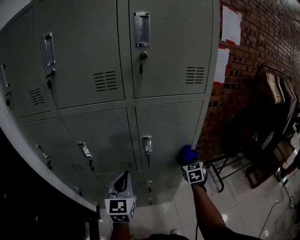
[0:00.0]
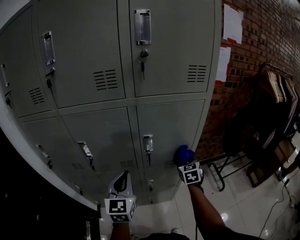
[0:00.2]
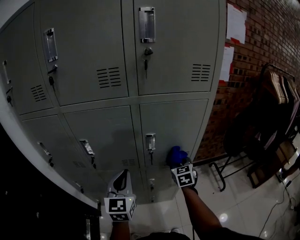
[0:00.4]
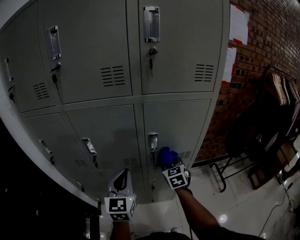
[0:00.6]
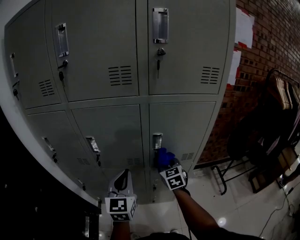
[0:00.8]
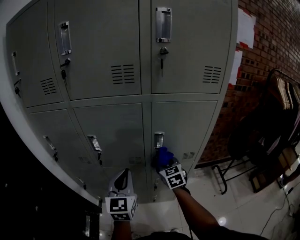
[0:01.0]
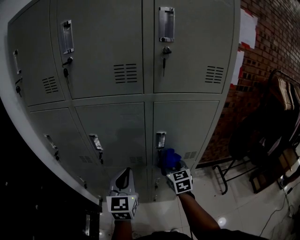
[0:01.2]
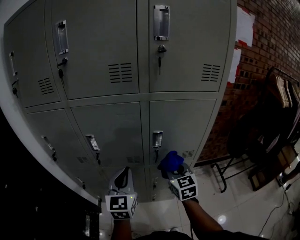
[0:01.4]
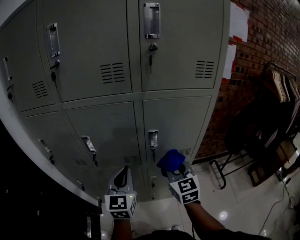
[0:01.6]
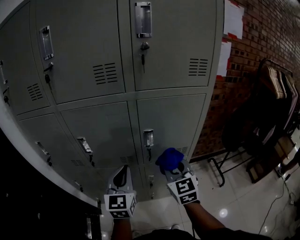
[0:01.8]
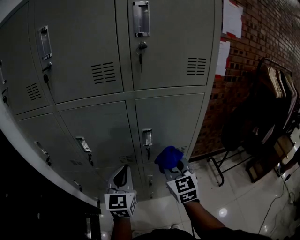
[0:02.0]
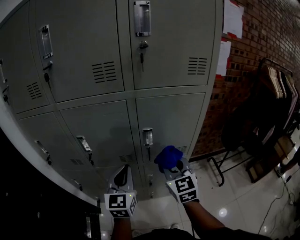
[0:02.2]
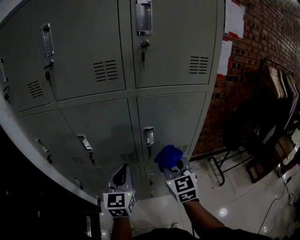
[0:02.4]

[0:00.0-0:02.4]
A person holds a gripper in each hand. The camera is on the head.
0:00.0 to 0:01.2: The right gripper moves to the left, approximately 15 cm.
0:01.2 to 0:02.4: The right gripper heads upward and backward, covering some 10 cm.

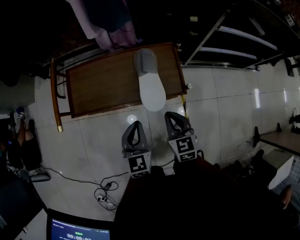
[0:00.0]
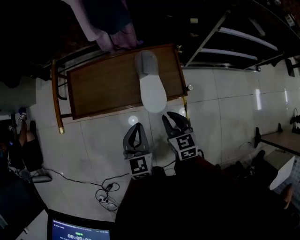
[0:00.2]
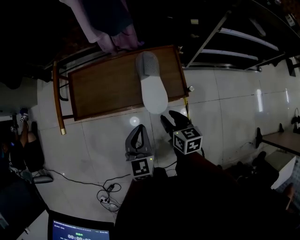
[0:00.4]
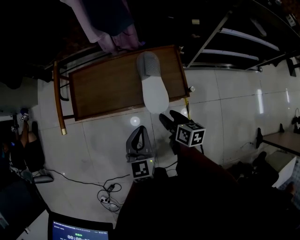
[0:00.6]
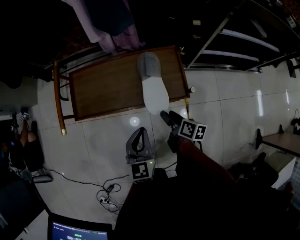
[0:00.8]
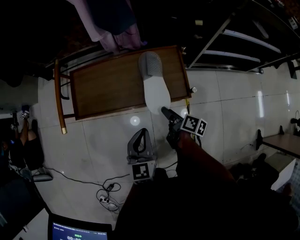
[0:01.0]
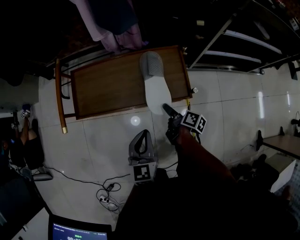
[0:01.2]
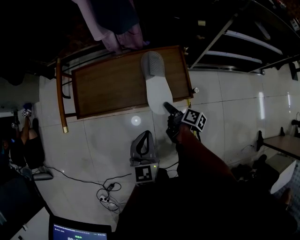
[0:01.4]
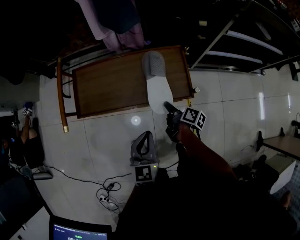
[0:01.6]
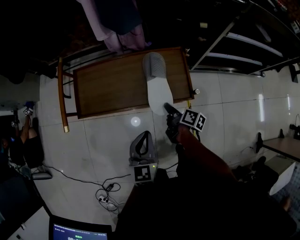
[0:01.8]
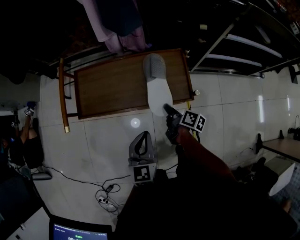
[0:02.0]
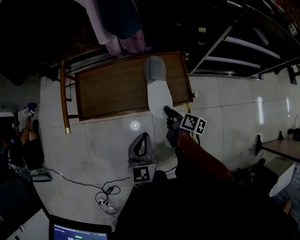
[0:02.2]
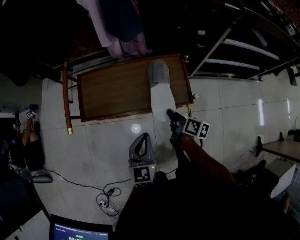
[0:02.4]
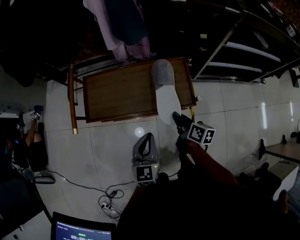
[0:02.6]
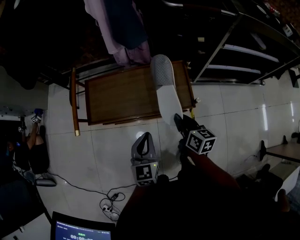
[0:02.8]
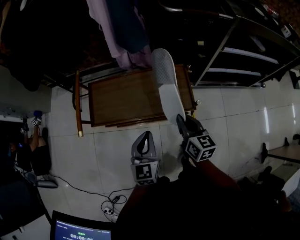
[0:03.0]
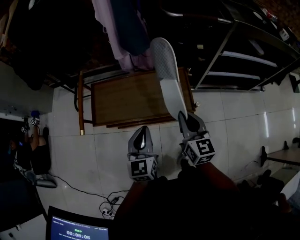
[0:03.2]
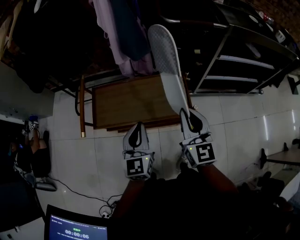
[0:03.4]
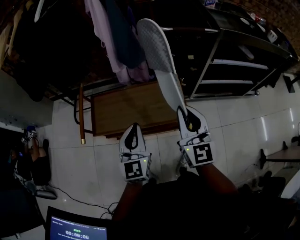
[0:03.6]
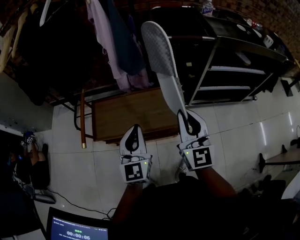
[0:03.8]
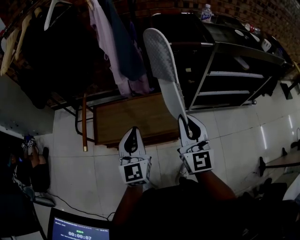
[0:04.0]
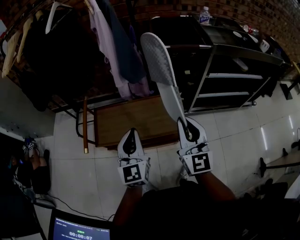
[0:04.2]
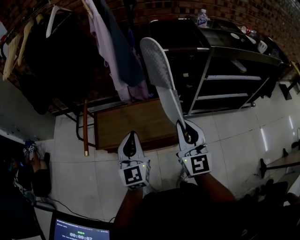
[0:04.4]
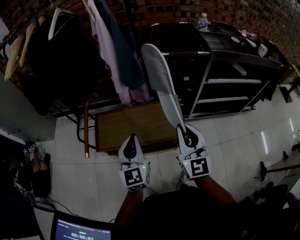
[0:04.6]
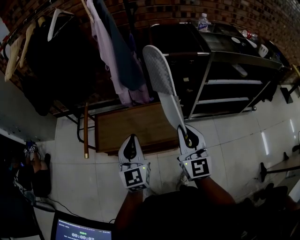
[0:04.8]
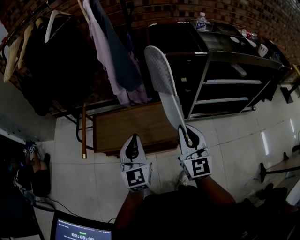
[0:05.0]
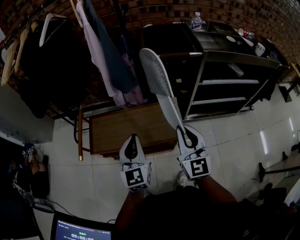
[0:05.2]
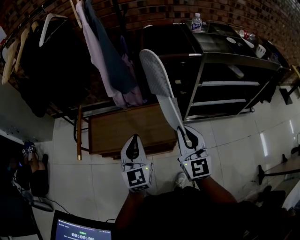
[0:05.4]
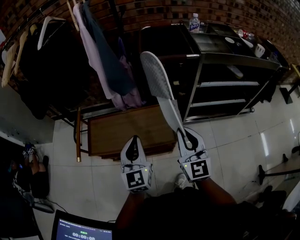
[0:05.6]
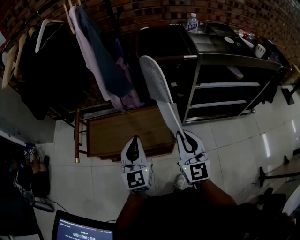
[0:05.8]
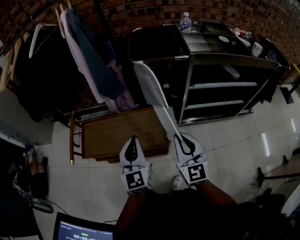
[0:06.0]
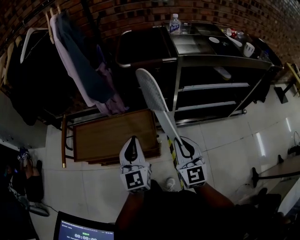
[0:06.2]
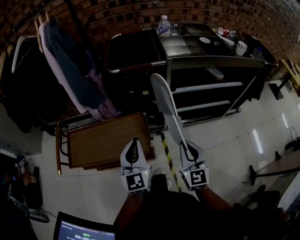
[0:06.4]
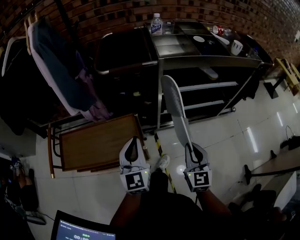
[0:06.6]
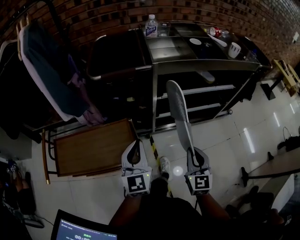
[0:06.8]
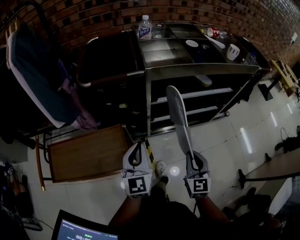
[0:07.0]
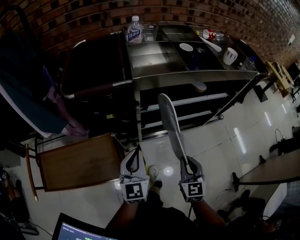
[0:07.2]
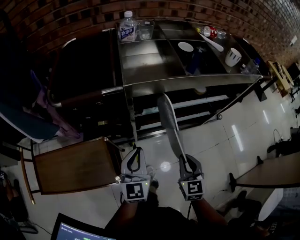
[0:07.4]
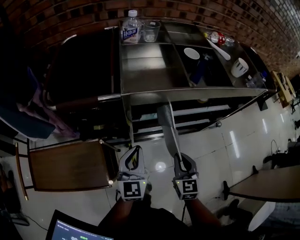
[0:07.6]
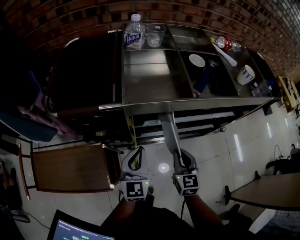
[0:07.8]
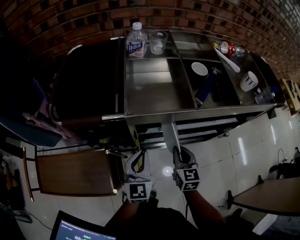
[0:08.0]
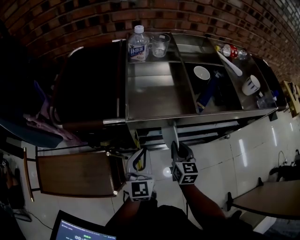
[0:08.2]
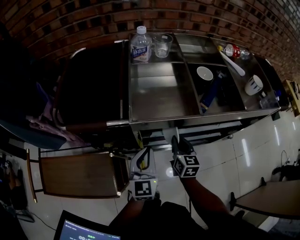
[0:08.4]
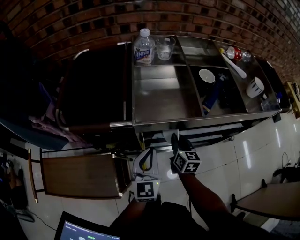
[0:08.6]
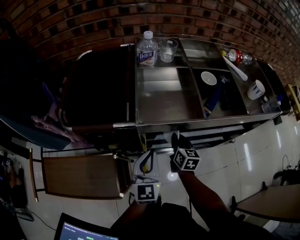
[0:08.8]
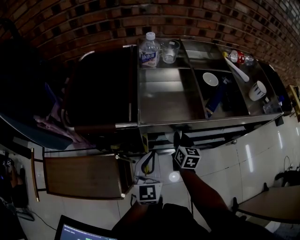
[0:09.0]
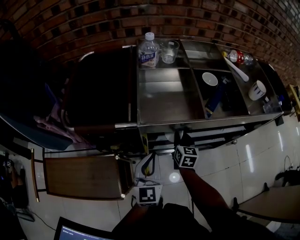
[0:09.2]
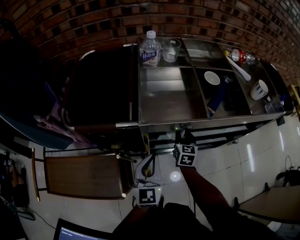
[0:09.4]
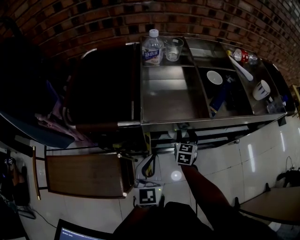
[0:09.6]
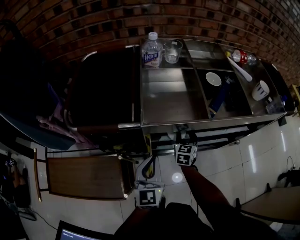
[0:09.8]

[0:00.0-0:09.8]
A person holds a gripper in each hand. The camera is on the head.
0:00.0 to 0:01.4: The right gripper travels downward and forward by some 10 cm, rotates around the line of its fingers by roughly 80 degrees, clockwise from behind, and opens its fingers.
0:01.4 to 0:02.8: The right gripper is displaced upward by about 15 cm, rotates around the line of its fingers by roughly 40 degrees, counterclockwise from behind, and closes its fingers.
0:02.8 to 0:04.2: Both grippers move upward, roughly 25 cm. The right gripper tips its fingers upward by some 30 degrees.
0:04.2 to 0:05.6: Both grippers move to the right, approximately 10 cm.
0:05.6 to 0:07.0: The left gripper shifts some 30 cm to the right and forward. Meanwhile the right gripper moves to the right and downward, roughly 30 cm, and rotates about 30 degrees.
0:07.0 to 0:08.4: The right gripper travels forward by some 30 cm, and changes its angle by roughly 20 degrees. Meanwhile the left gripper travels forward and to the right by roughly 25 cm.
0:08.4 to 0:09.8: The right gripper moves forward, some 5 cm, changes its angle by approximately 20 degrees, and opens its fingers.

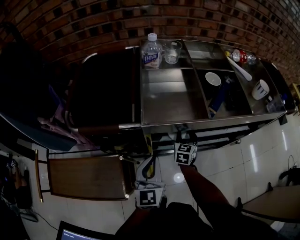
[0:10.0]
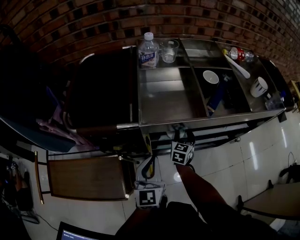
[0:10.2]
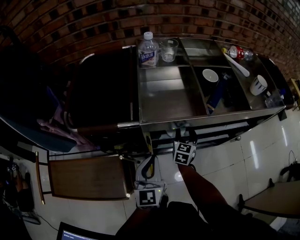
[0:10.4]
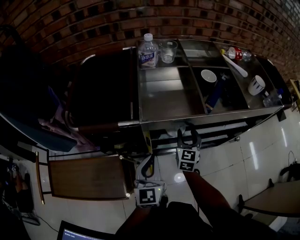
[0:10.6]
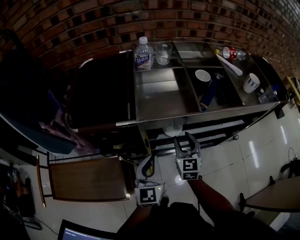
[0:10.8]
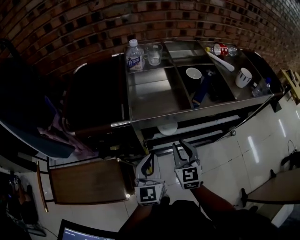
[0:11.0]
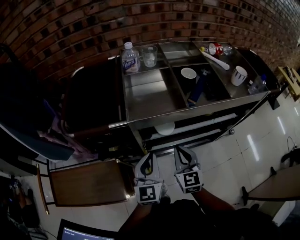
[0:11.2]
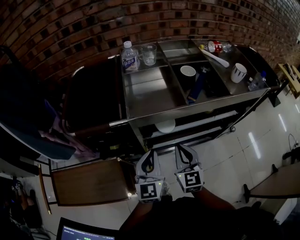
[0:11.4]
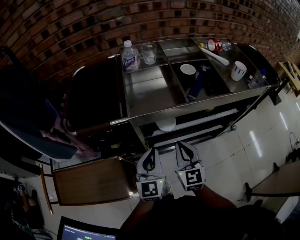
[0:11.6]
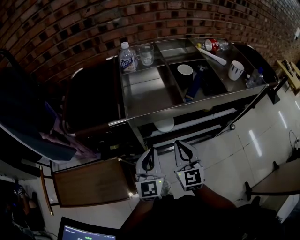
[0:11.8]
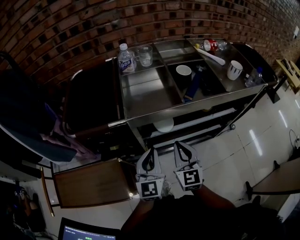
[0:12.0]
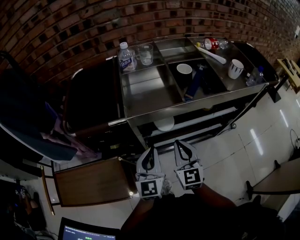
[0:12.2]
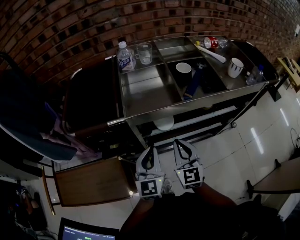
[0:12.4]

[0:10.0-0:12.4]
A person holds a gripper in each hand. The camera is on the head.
0:10.0 to 0:11.2: The right gripper moves backward and upward, some 20 cm, turns by about 20 degrees, and closes.
0:11.2 to 0:12.4: The grippers make only small movements.

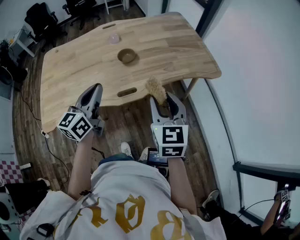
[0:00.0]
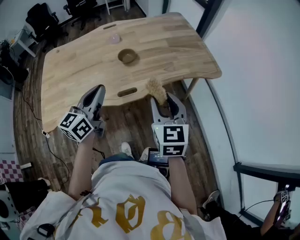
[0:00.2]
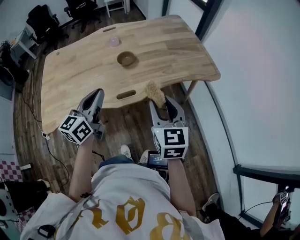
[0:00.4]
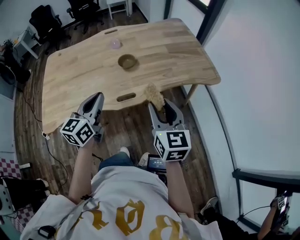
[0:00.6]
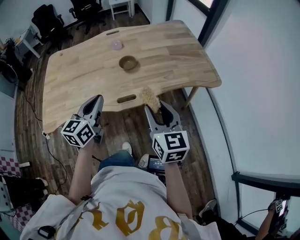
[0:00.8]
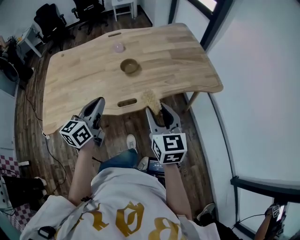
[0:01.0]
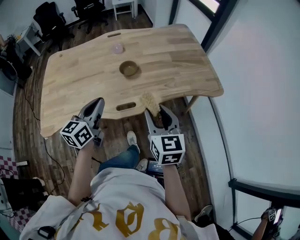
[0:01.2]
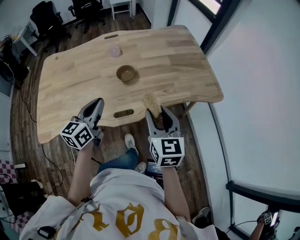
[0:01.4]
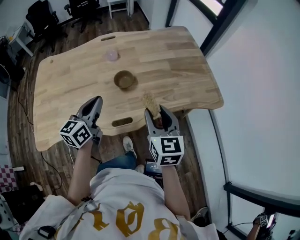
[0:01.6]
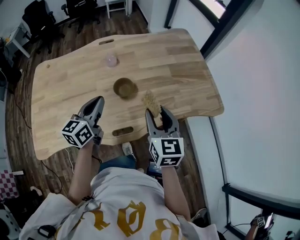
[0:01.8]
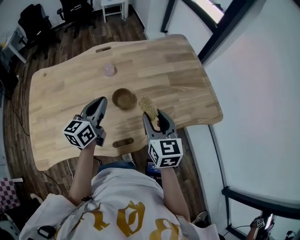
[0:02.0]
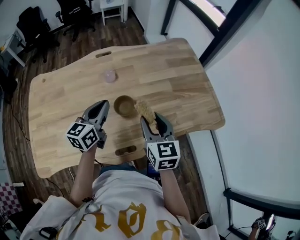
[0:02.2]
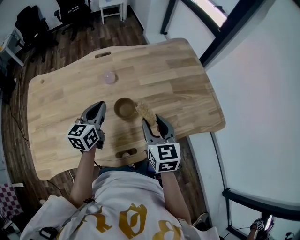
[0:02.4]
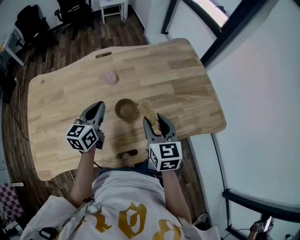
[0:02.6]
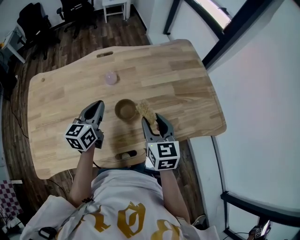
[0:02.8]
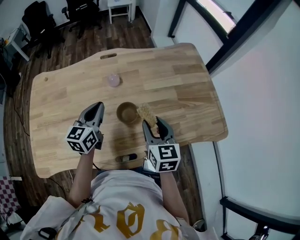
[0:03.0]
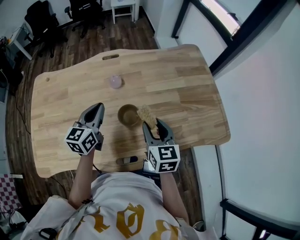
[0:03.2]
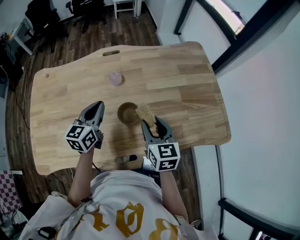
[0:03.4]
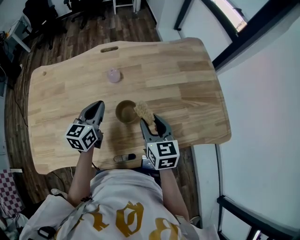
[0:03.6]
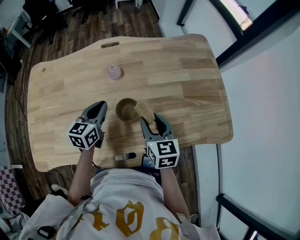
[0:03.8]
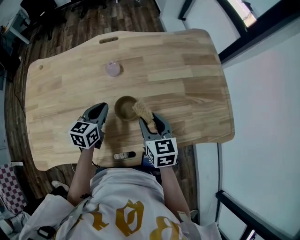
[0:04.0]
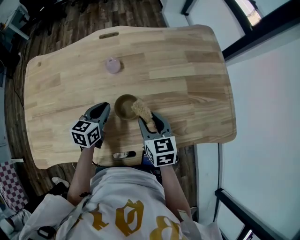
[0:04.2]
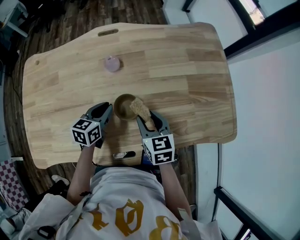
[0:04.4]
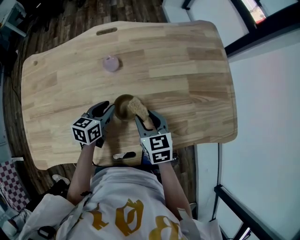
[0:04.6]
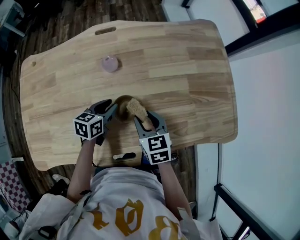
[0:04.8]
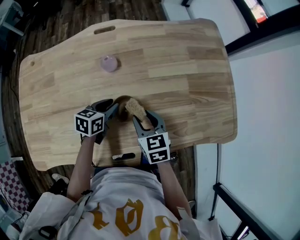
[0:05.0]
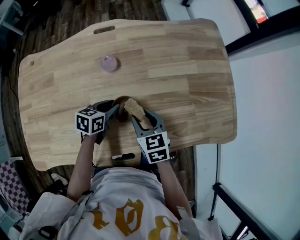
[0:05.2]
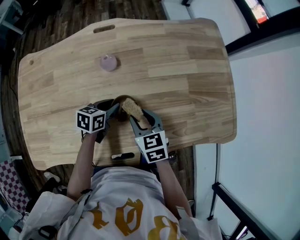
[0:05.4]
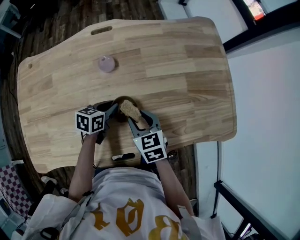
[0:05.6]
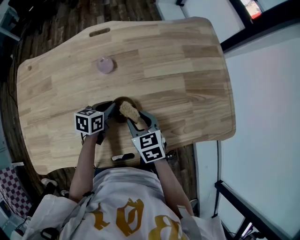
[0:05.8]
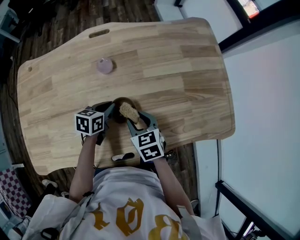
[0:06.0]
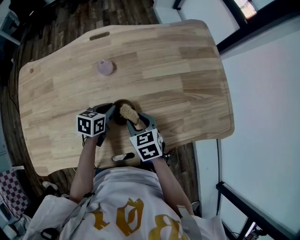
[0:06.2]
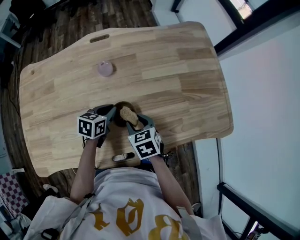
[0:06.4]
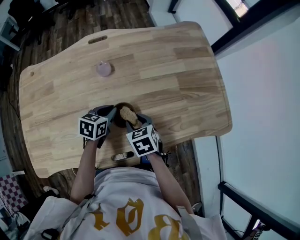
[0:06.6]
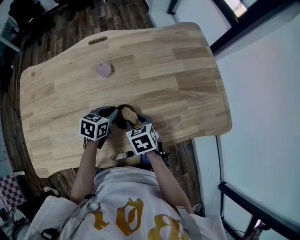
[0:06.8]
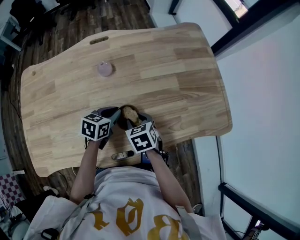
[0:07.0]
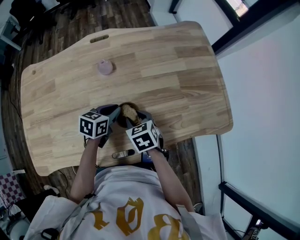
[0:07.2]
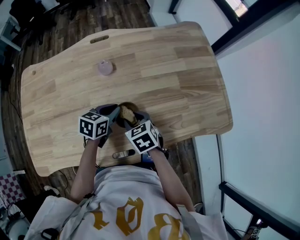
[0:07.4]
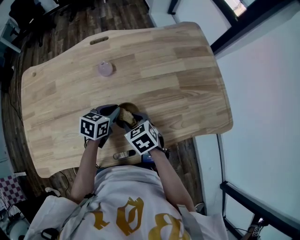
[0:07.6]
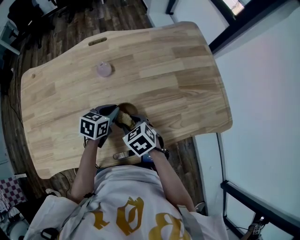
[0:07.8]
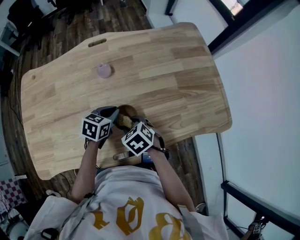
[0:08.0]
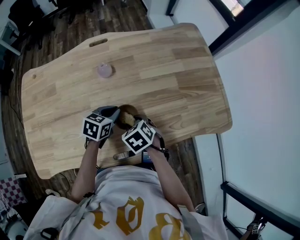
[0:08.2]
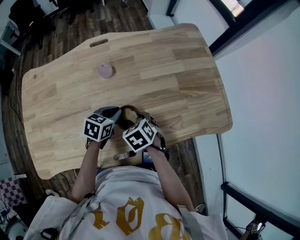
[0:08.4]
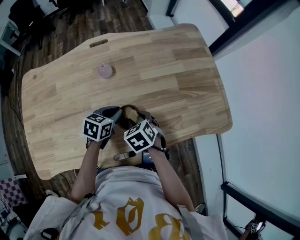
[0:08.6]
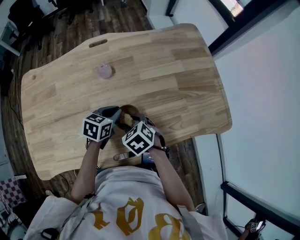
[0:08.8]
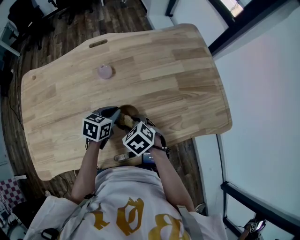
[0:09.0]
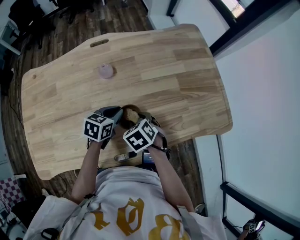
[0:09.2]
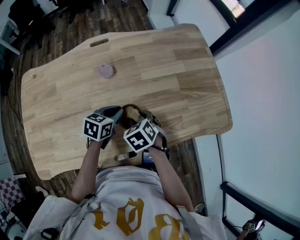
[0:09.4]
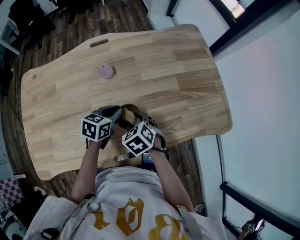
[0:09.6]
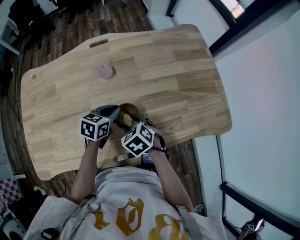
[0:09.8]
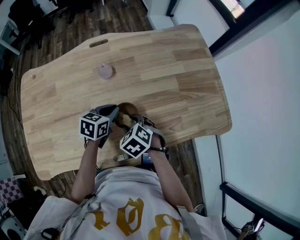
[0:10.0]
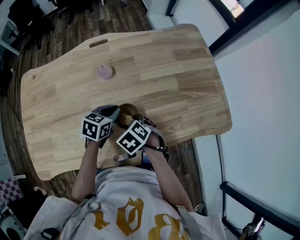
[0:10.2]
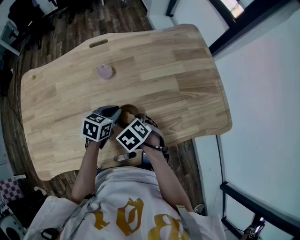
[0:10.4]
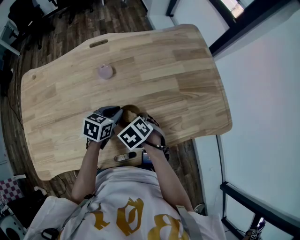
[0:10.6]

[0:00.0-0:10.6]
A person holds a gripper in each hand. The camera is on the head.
0:00.0 to 0:01.6: The left gripper goes about 15 cm forward and downward; the right gripper is displaced forward by about 15 cm.
0:01.6 to 0:03.0: The grippers both shift forward by roughly 15 cm.
0:03.0 to 0:04.6: The left gripper moves downward, about 15 cm, rotates approximately 30 degrees, and opens up, while the right gripper travels downward and forward by some 15 cm.
0:04.6 to 0:06.0: The grippers stay close to where they were, moving slightly.
0:06.0 to 0:07.6: The left gripper moves about 5 cm.
0:07.6 to 0:09.0: The grippers stay close to where they were, moving slightly.
0:09.0 to 0:10.6: The grippers stay close to where they were, moving slightly.
